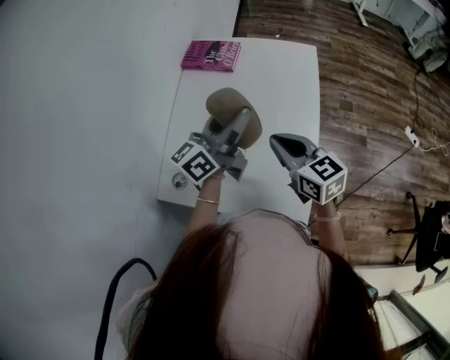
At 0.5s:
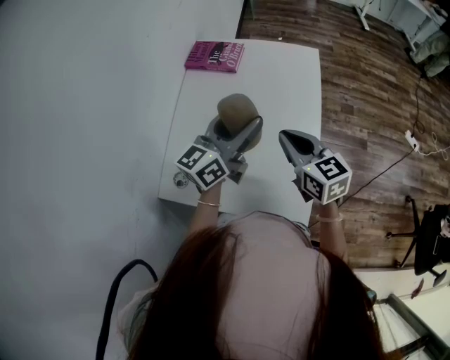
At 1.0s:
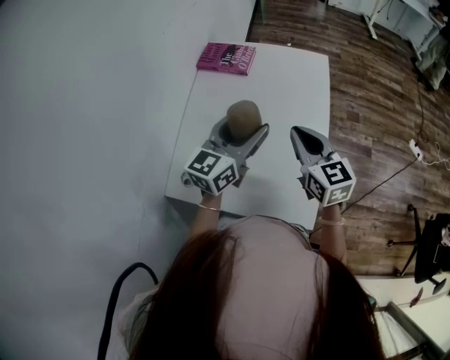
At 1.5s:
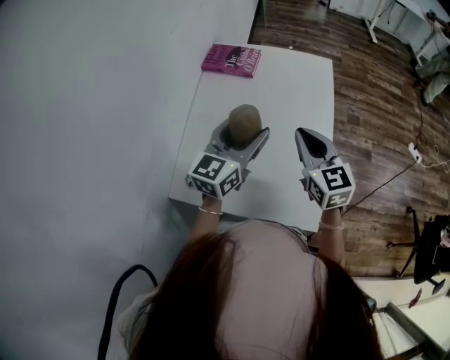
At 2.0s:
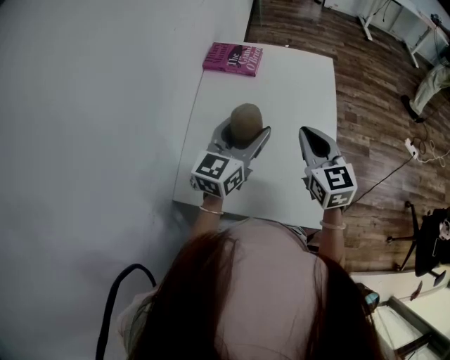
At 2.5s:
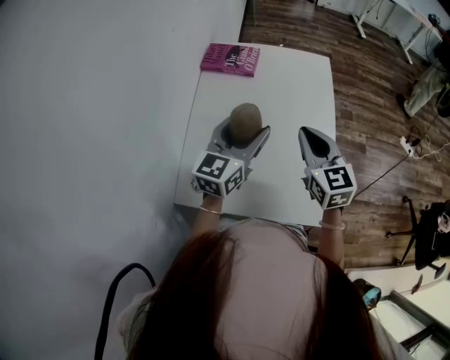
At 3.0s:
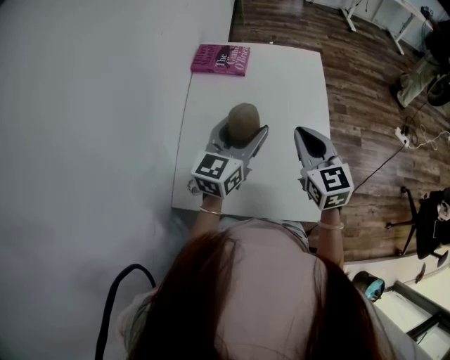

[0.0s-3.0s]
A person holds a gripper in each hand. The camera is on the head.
0.0s to 1.5s: The right gripper swivels approximately 20 degrees, while the left gripper moves approximately 5 cm, and turns by approximately 30 degrees.
1.5s to 3.0s: The grippers move only a little.

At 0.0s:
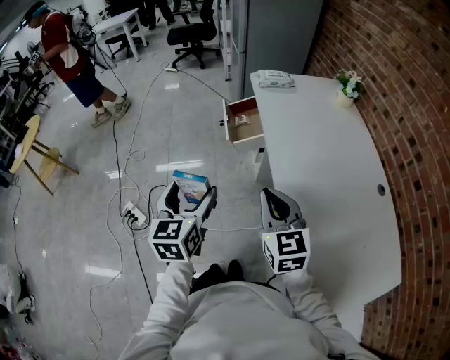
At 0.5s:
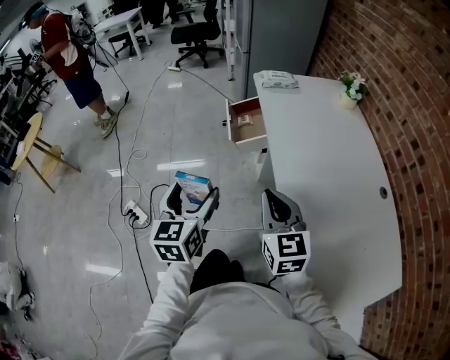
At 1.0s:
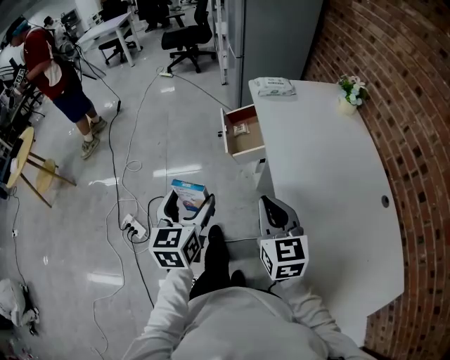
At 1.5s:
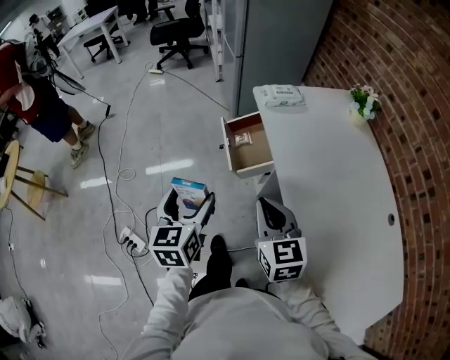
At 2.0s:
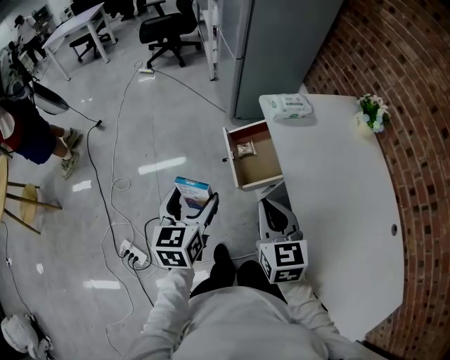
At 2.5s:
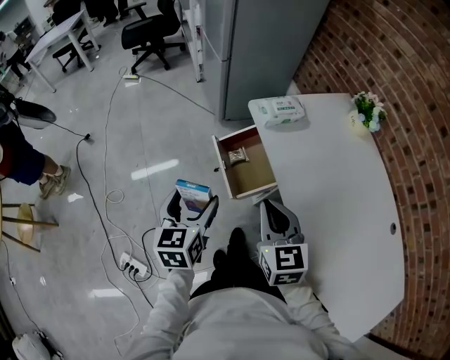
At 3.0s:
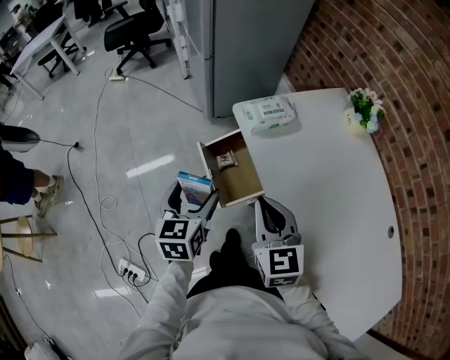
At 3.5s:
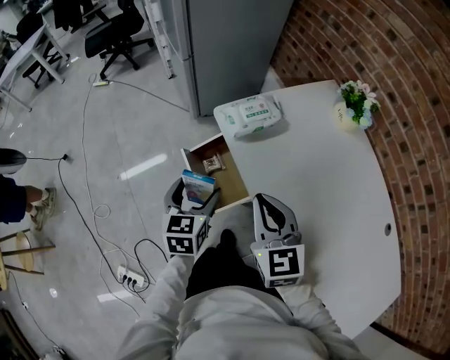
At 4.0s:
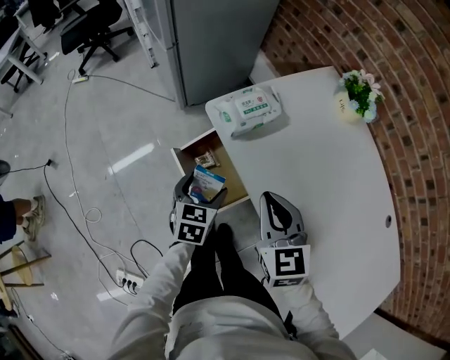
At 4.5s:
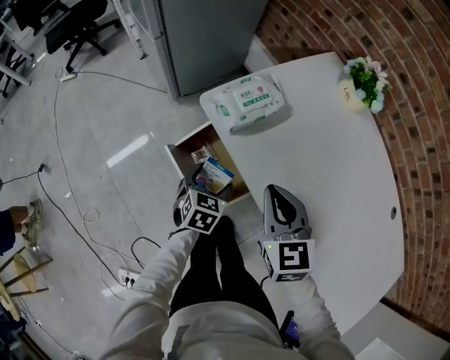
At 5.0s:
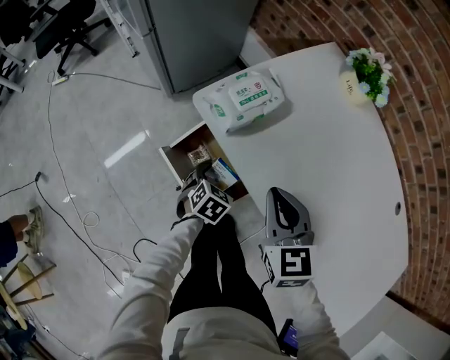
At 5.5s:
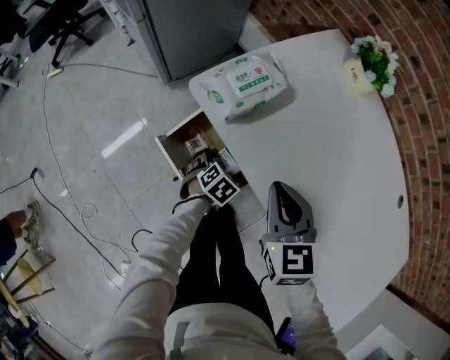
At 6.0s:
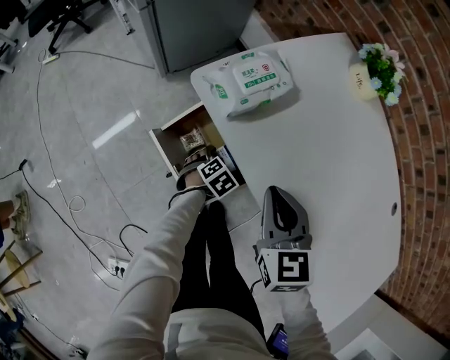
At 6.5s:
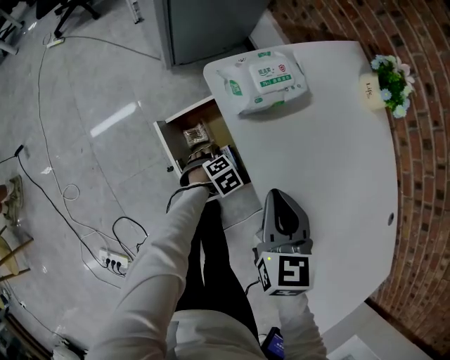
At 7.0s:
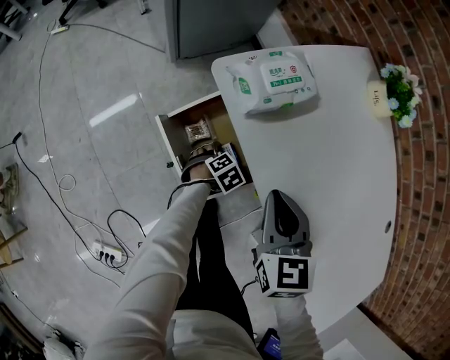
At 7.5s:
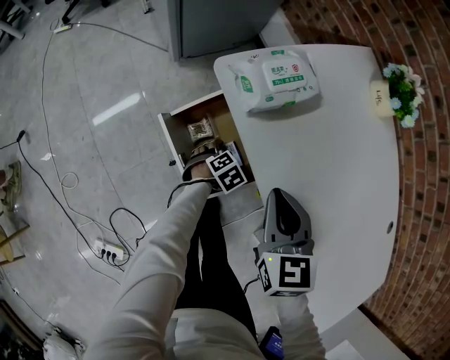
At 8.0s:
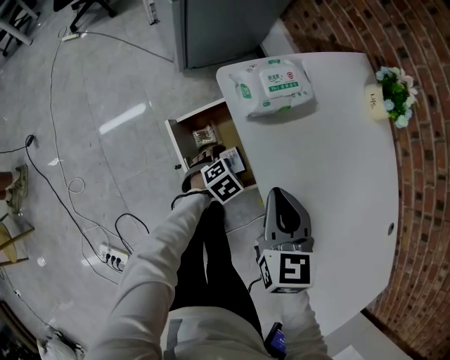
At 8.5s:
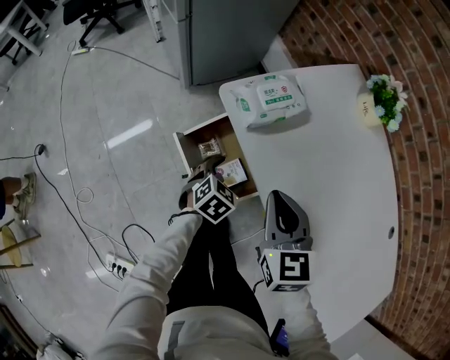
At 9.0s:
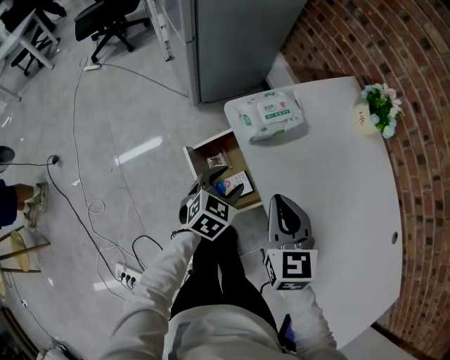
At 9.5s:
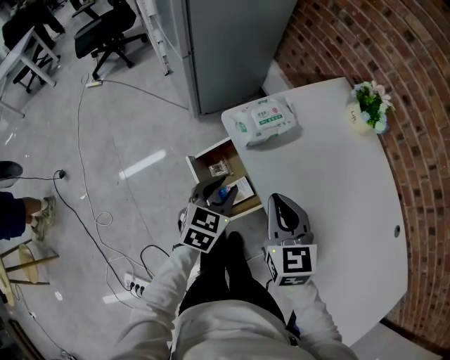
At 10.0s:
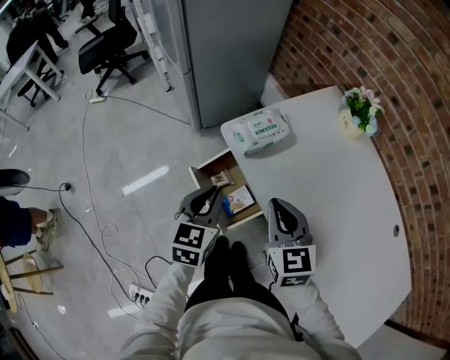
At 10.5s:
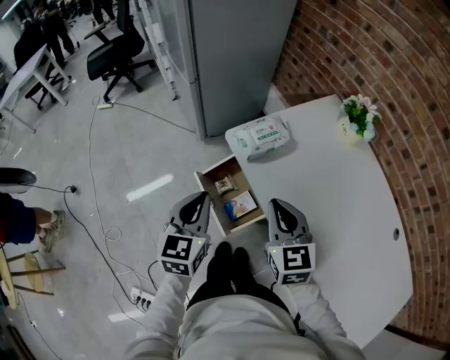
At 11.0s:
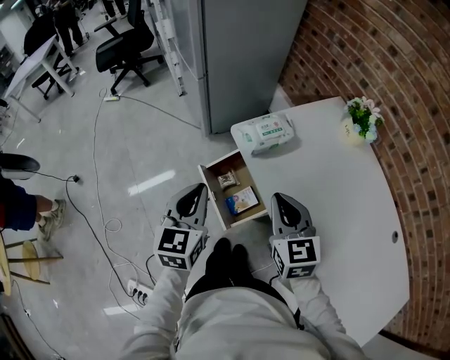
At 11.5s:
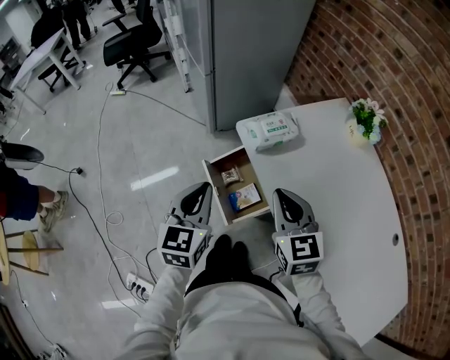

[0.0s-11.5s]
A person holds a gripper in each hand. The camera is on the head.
0.0s to 2.0s: Both grippers move forward, approximately 30 cm.
2.0s to 4.0s: The right gripper moves forward and to the right, some 20 cm. The left gripper travels forward, downward and to the right by roughly 35 cm, and turns by some 40 degrees.
4.0s to 6.0s: The left gripper shifts some 25 cm downward, and rotates about 50 degrees. Meanwhile the right gripper goes about 5 cm downward.
6.0s to 7.5s: The grippers move only a little.
7.5s to 9.5s: The right gripper goes some 10 cm upward. The left gripper shifts approximately 30 cm upward, tilts its fingers approximately 30 degrees upward, and closes.
9.5s to 11.5s: The right gripper is displaced upward by approximately 5 cm; the left gripper heads upward, to the left and backward, covering roughly 15 cm, and turns by about 20 degrees.

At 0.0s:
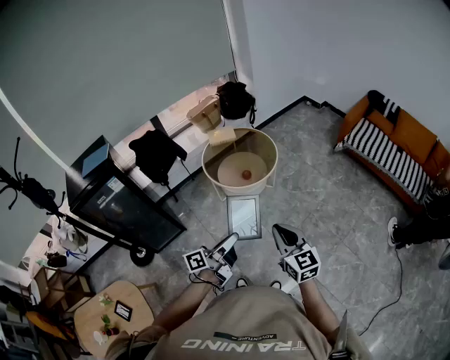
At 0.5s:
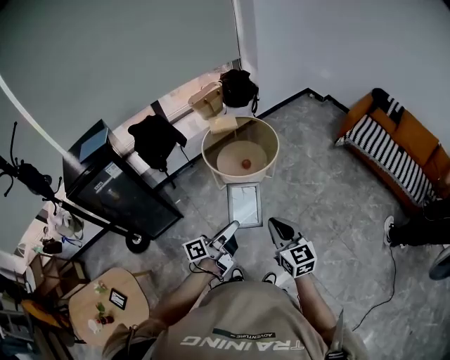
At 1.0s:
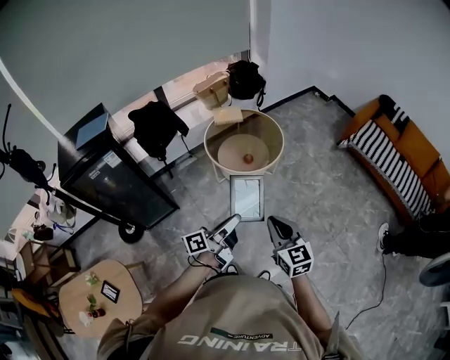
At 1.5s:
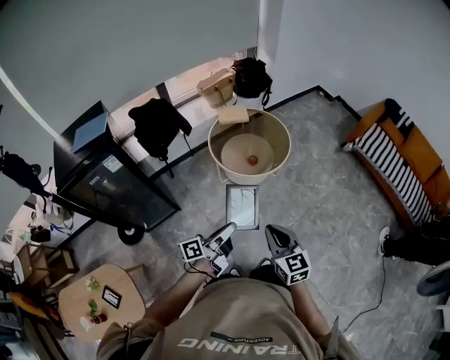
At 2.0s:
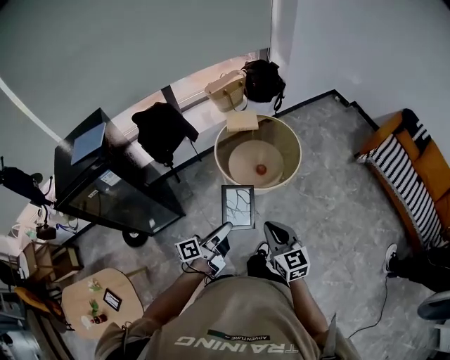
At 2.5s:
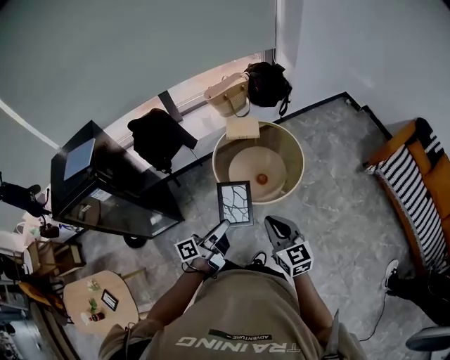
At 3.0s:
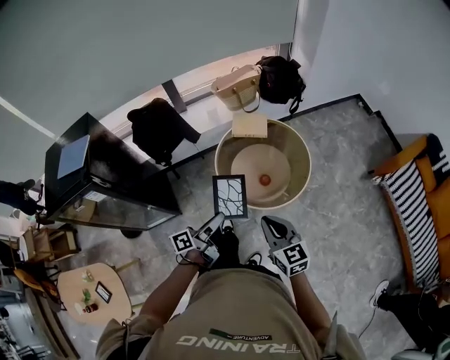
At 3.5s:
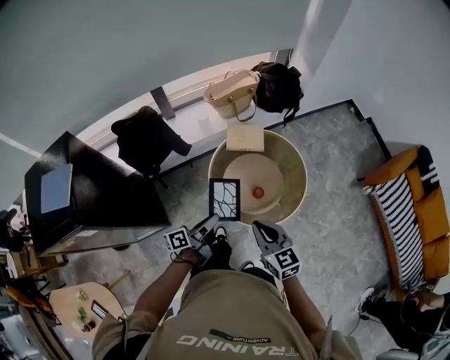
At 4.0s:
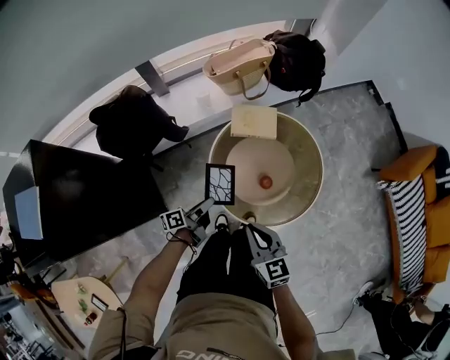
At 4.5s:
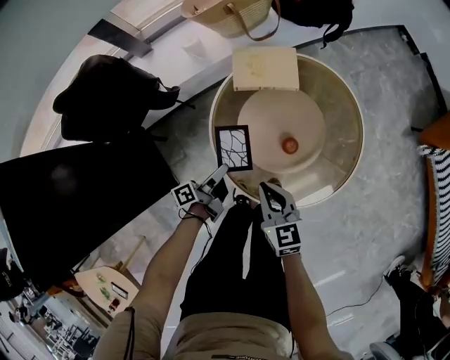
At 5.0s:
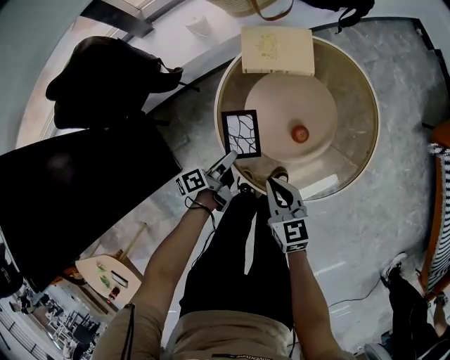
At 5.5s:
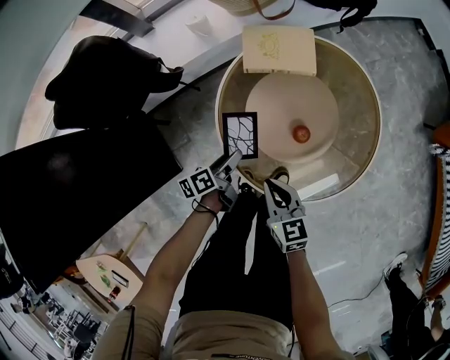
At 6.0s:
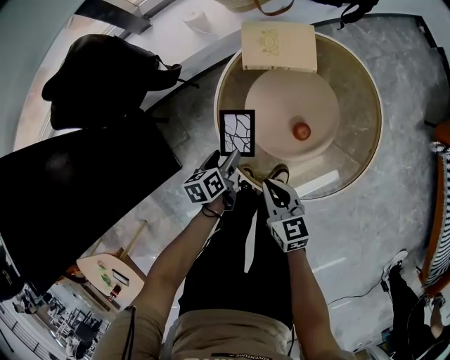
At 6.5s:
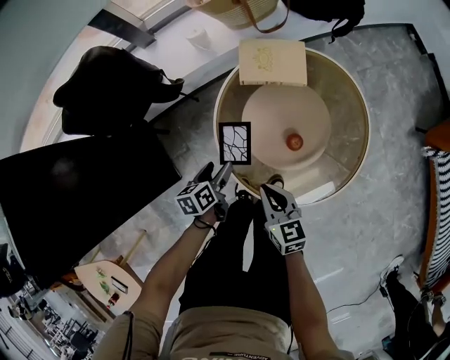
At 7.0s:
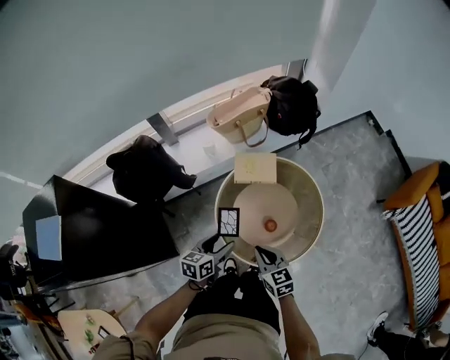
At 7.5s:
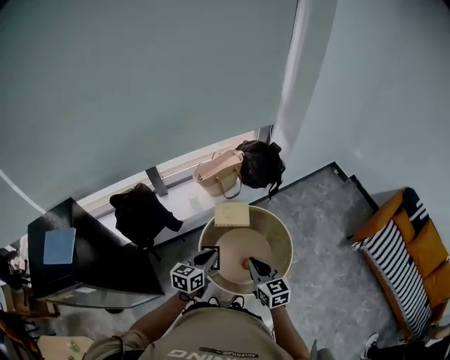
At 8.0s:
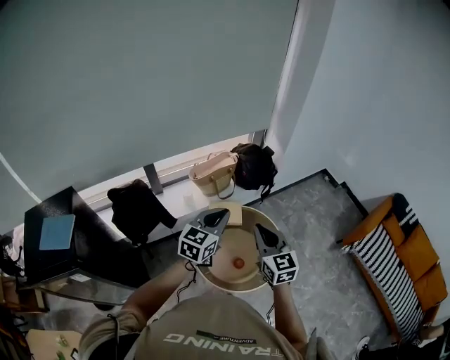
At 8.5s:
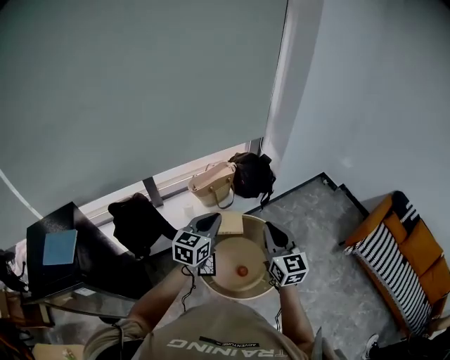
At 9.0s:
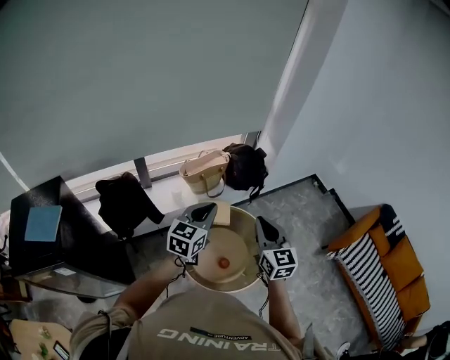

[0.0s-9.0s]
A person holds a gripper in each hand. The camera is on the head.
0.0s to 2.0s: Both grippers travel together forward and to the left, about 20 cm.
2.0s to 4.5s: Both grippers are carried forward, some 40 cm. Both grippers move downward, approximately 35 cm. The left gripper changes its angle by about 20 degrees.
4.5s to 7.0s: The right gripper shifts some 10 cm upward, while the left gripper heads upward, covering about 20 cm, rolls clockwise, seen from behind, by roughly 50 degrees, and opens up.
7.0s to 9.0s: The two grippers go roughly 35 cm upward. The right gripper turns by some 40 degrees; the left gripper turns by approximately 40 degrees, and closes up.

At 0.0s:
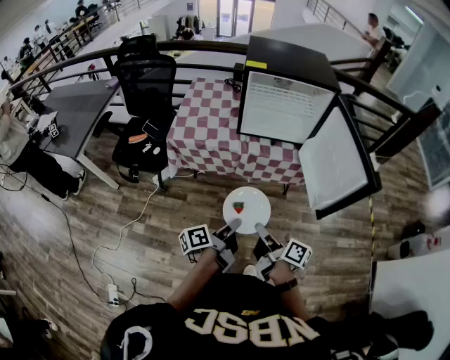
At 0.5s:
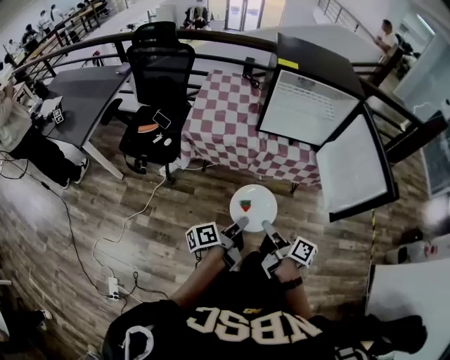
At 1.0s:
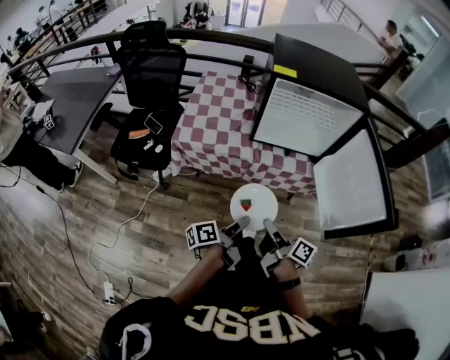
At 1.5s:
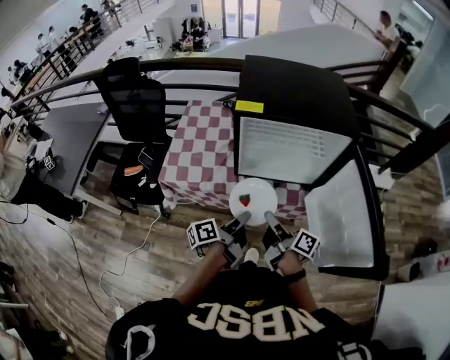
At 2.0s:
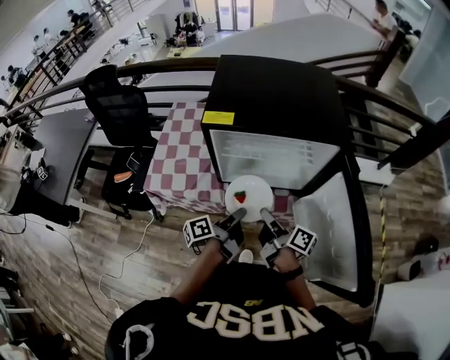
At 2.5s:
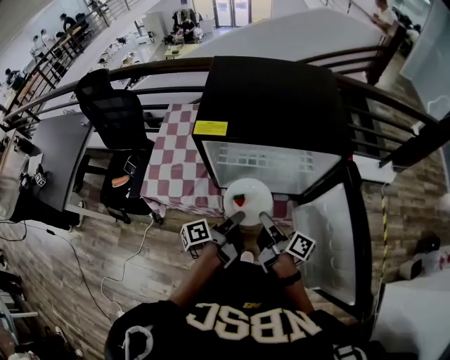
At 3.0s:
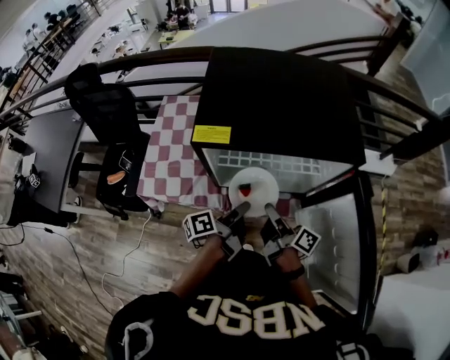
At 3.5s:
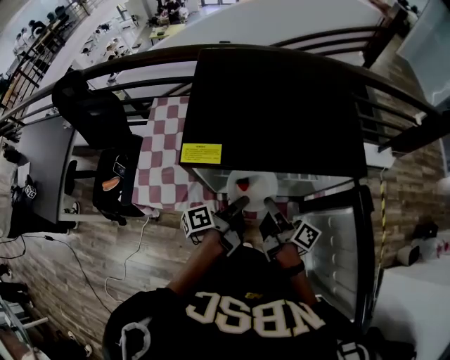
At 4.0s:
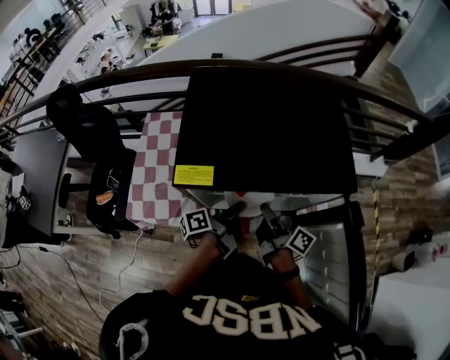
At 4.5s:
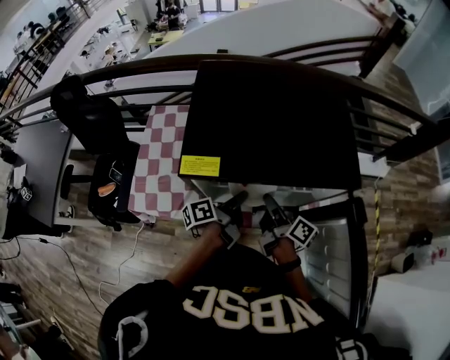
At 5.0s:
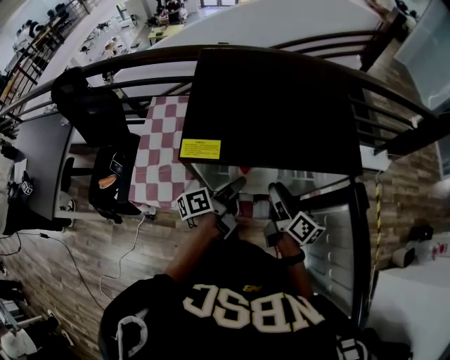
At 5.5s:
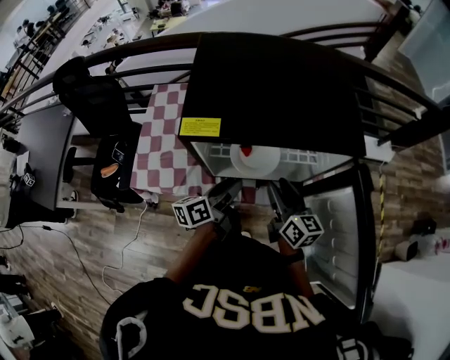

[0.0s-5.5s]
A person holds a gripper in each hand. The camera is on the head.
0.0s to 2.0s: Both grippers travel together forward, about 35 cm.
2.0s to 3.5s: The grippers both shift forward by approximately 15 cm.
3.5s to 5.5s: The left gripper changes its angle by approximately 30 degrees, and opens. The right gripper rolls counterclockwise, seen from behind, by roughly 50 degrees, and opens.
